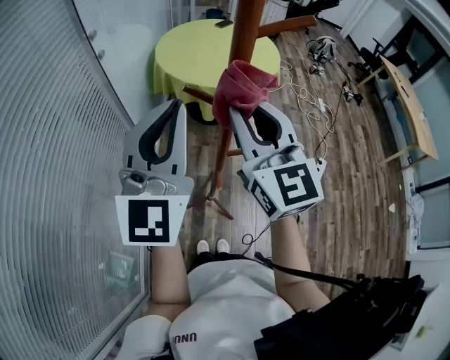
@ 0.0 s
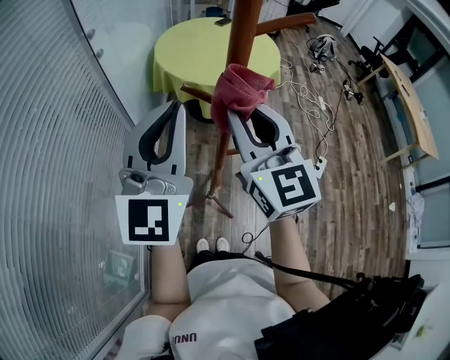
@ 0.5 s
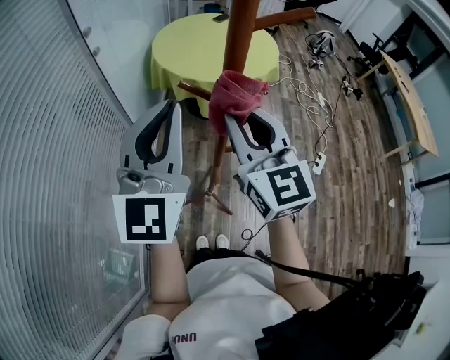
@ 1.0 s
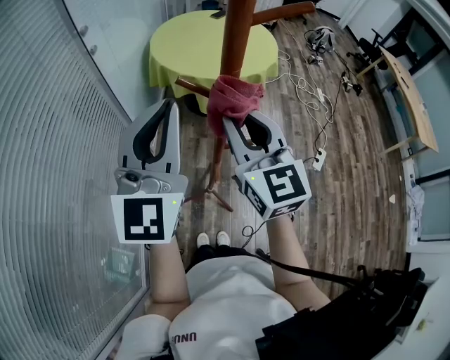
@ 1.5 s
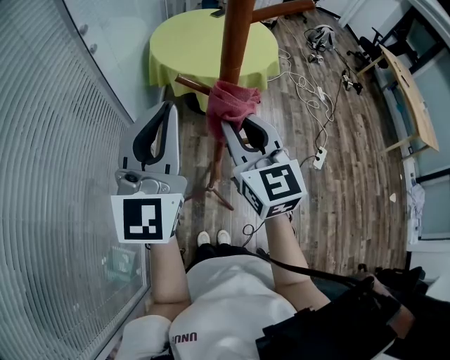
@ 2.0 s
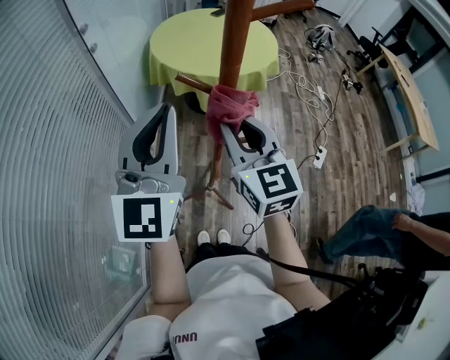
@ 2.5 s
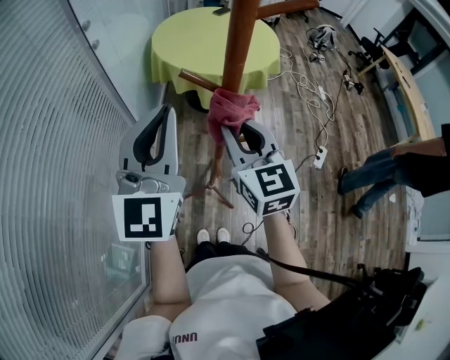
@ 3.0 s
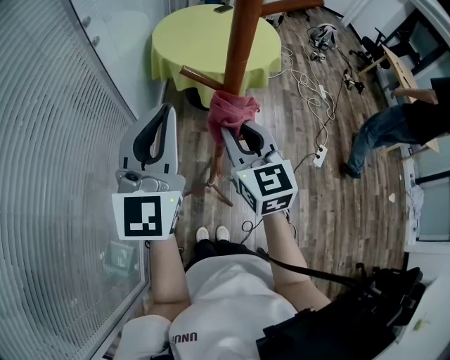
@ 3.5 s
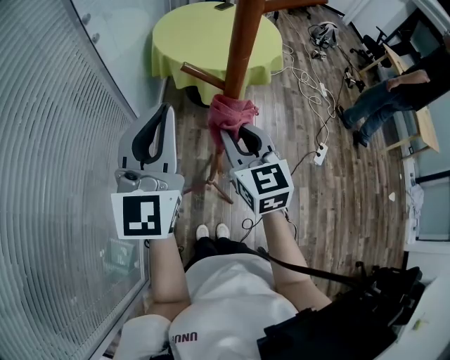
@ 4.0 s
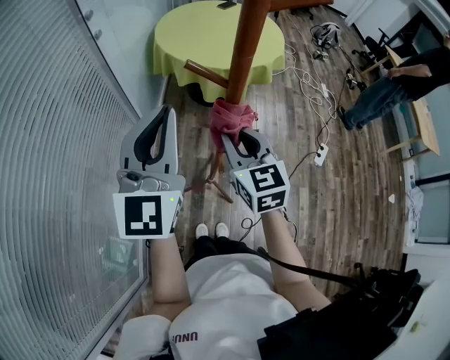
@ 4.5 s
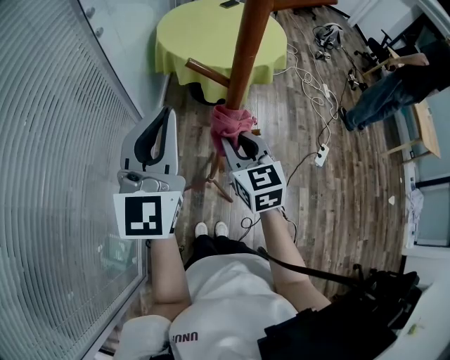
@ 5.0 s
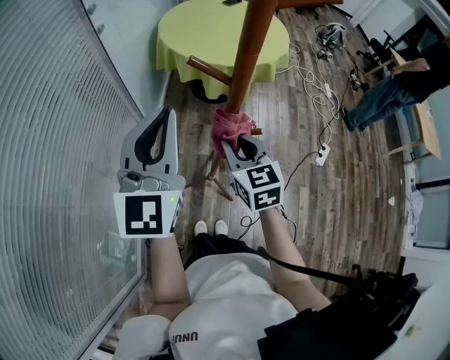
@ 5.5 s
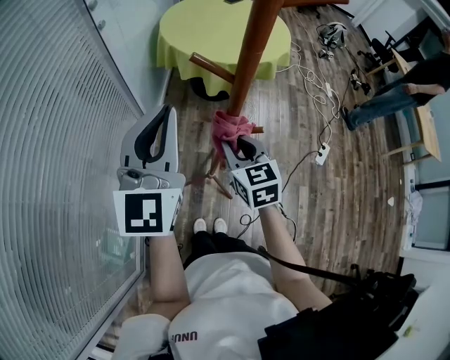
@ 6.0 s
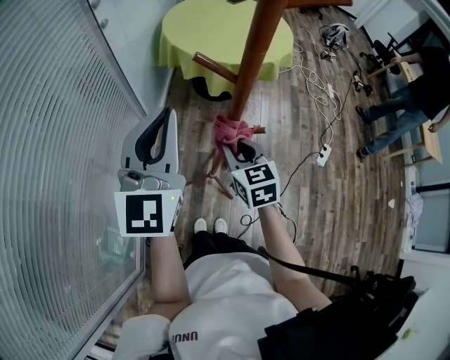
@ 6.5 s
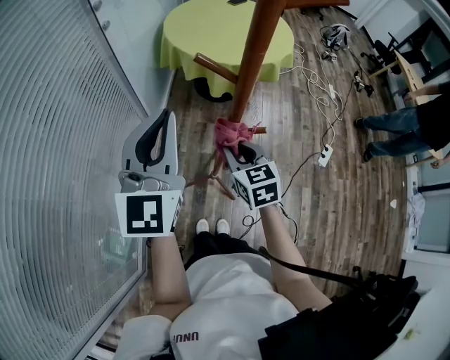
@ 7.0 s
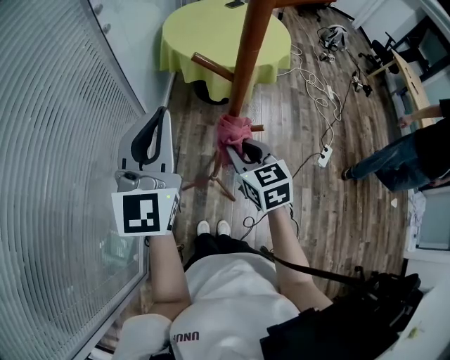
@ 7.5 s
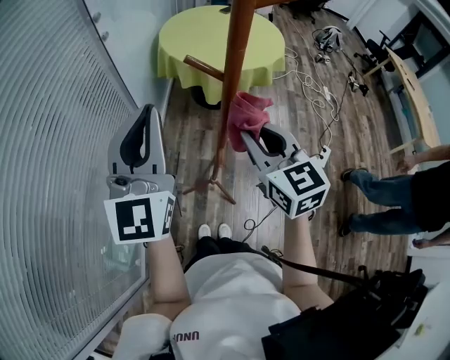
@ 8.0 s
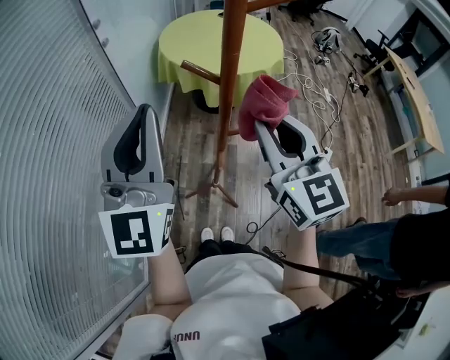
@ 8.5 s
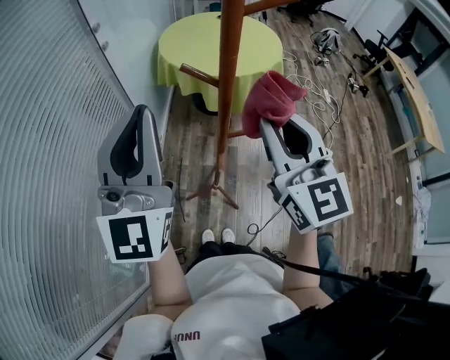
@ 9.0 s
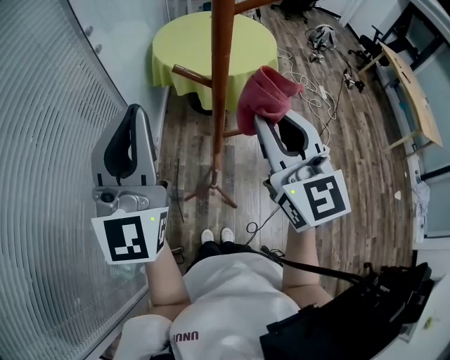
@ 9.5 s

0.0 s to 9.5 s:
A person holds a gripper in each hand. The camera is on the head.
0.0 to 2.0 s: The right gripper goes about 5 cm downward.
2.0 to 4.0 s: The right gripper is displaced downward by some 5 cm.
4.0 to 5.5 s: The right gripper goes approximately 5 cm downward.
5.5 to 7.5 s: The grippers stay close to where they were, moving slightly.
7.5 to 9.5 s: The left gripper heads upward, covering roughly 10 cm. Meanwhile the right gripper heads upward, covering some 20 cm, and tips its fingers upward by roughly 30 degrees.

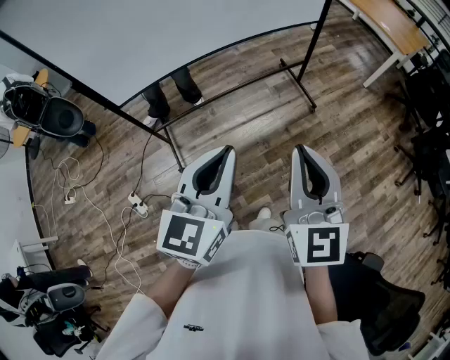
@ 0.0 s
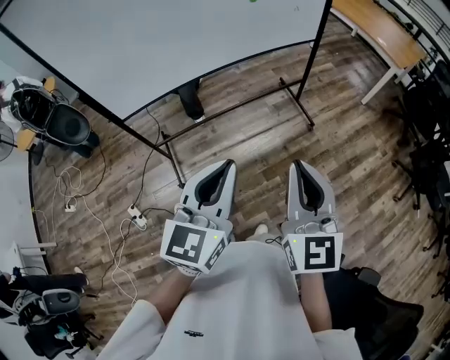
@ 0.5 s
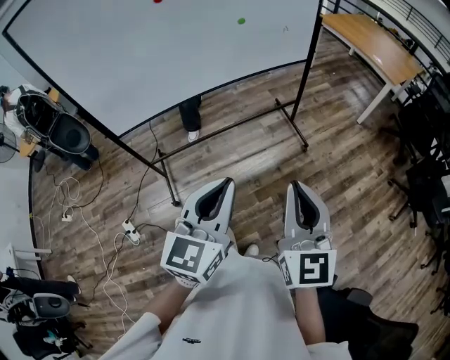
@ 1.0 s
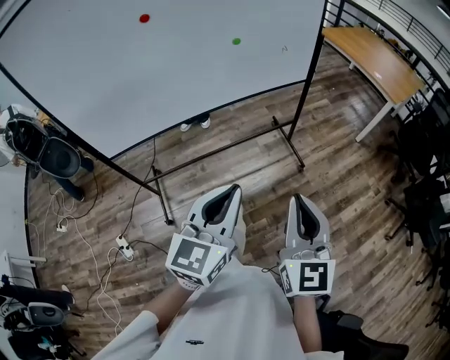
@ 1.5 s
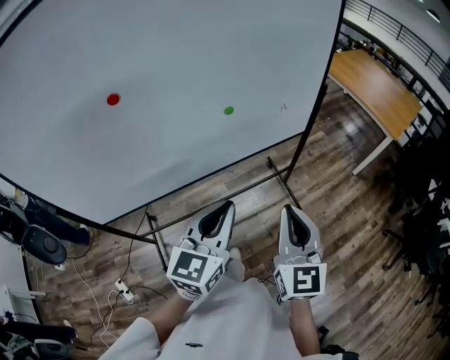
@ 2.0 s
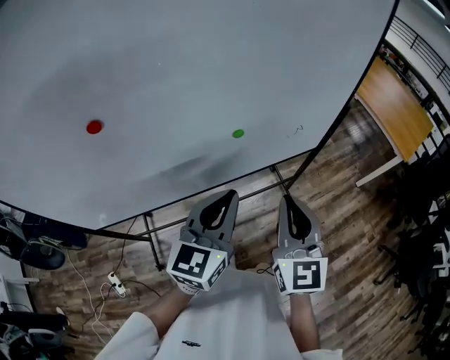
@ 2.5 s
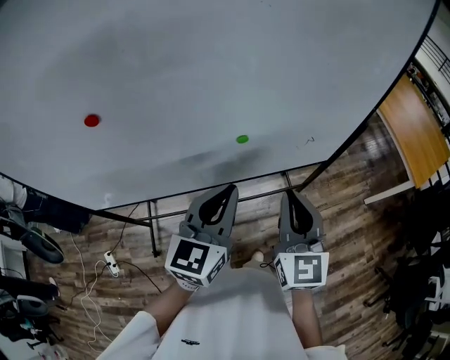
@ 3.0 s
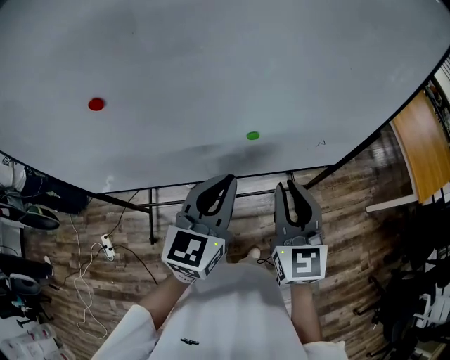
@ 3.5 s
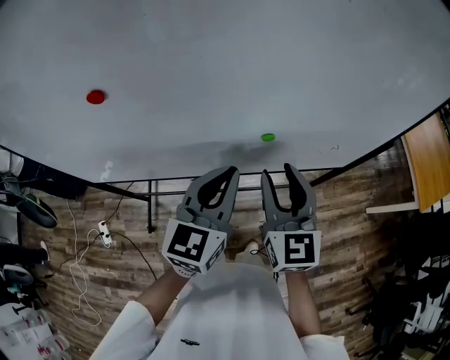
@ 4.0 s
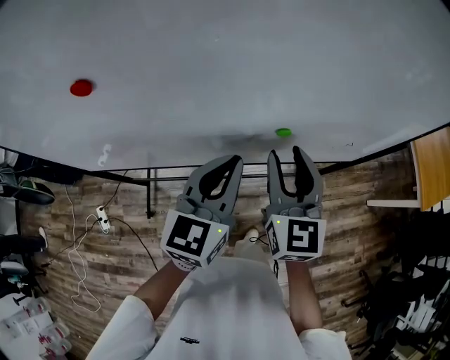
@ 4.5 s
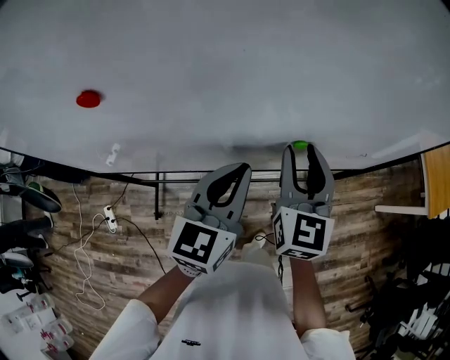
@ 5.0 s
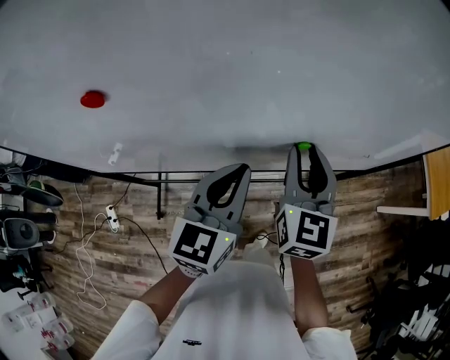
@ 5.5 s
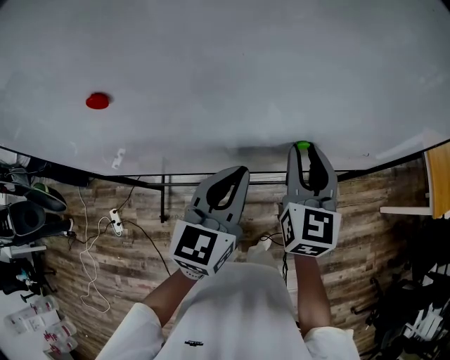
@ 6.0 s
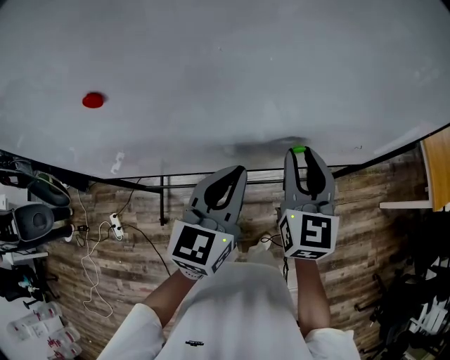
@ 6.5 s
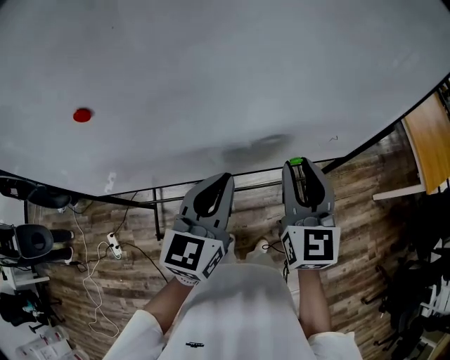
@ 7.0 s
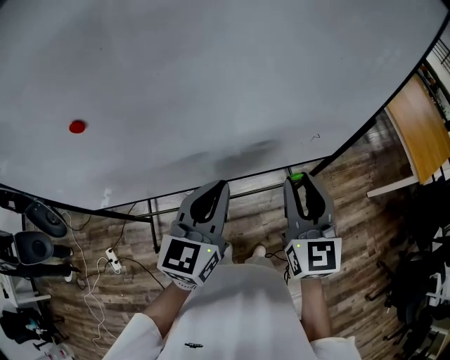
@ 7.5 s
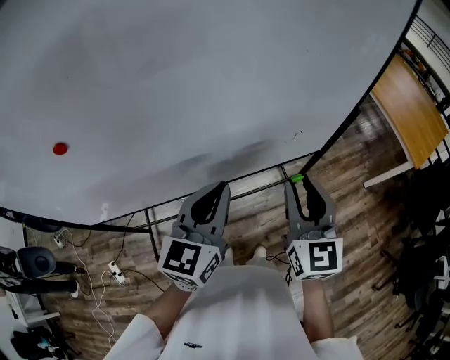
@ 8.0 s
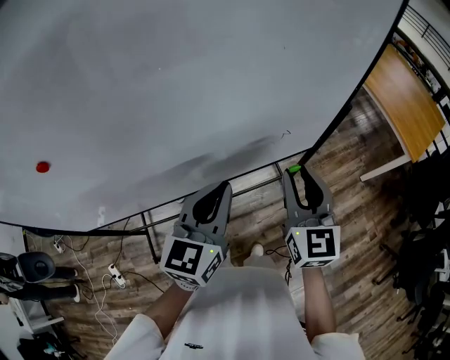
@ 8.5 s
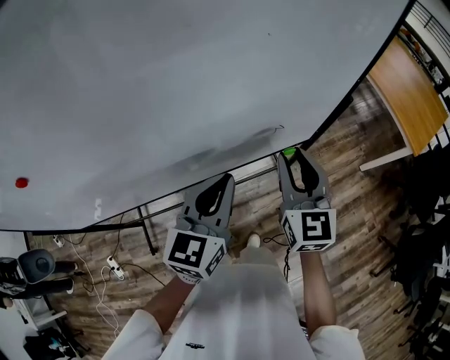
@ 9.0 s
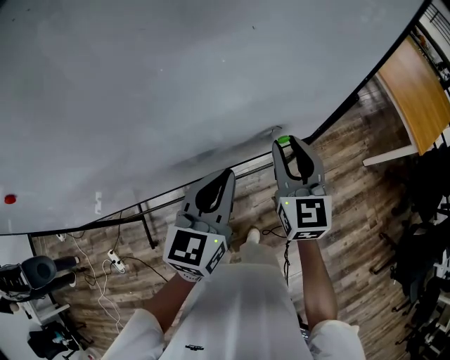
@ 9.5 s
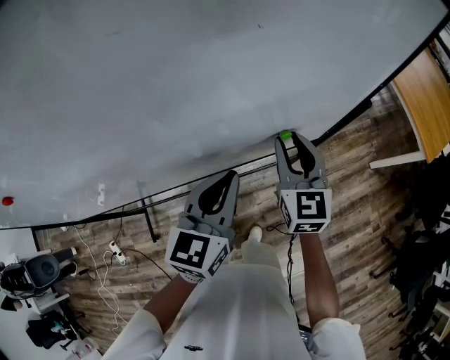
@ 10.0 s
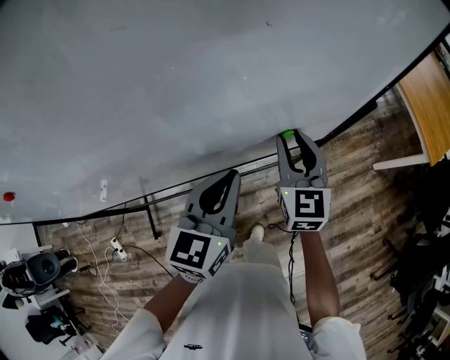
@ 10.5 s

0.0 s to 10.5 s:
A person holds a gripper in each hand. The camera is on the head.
0.0 to 2.0 s: The two grippers go some 35 cm forward.
2.0 to 4.0 s: Both grippers move forward, some 20 cm. The right gripper changes its angle by approximately 20 degrees, and opens up.
4.0 to 6.5 s: The right gripper is displaced forward by some 5 cm.
6.5 to 8.5 s: The grippers both shift to the right by approximately 15 cm.
8.5 to 10.5 s: The right gripper shifts about 15 cm forward and downward, while the left gripper heads forward and downward, covering about 10 cm.

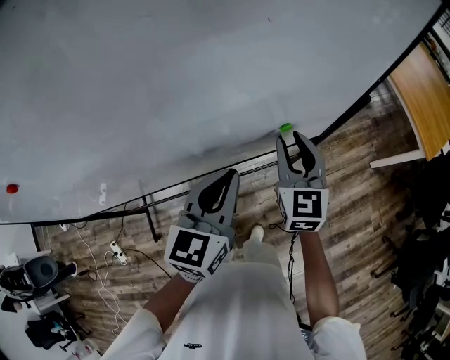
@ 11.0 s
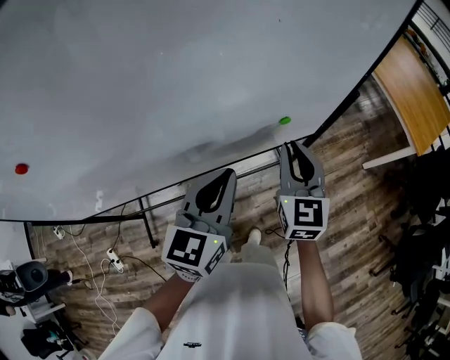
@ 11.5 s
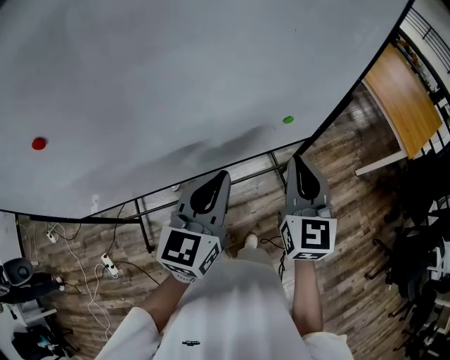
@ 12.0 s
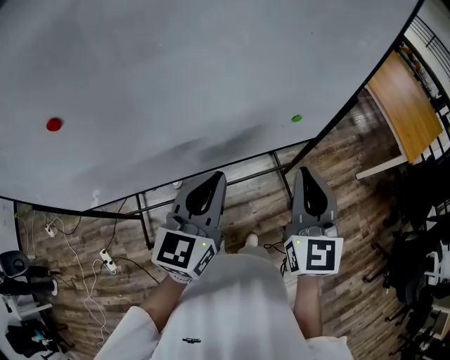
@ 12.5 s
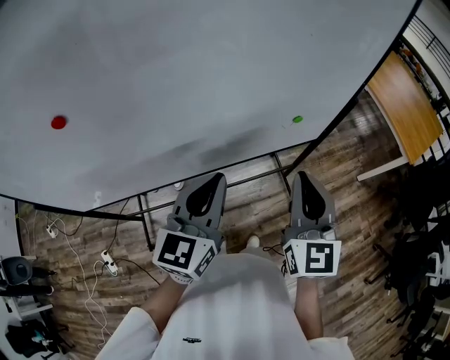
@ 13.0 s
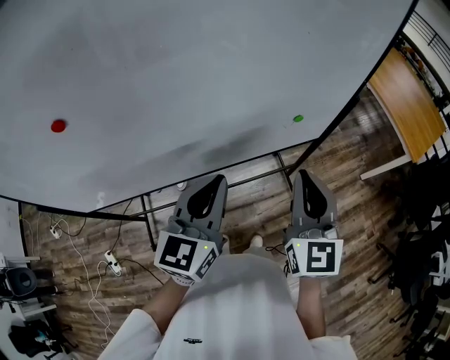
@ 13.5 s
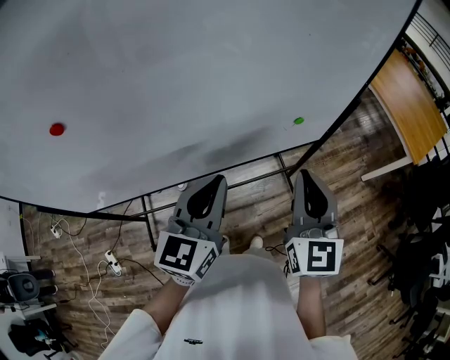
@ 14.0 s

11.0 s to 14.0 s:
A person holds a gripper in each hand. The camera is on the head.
11.0 to 12.5 s: The left gripper heads backward, to the left and upward, covering some 15 cm. Meanwhile the right gripper goes about 20 cm backward and upward, and closes.
12.5 to 14.0 s: Both grippers stay about where they are.

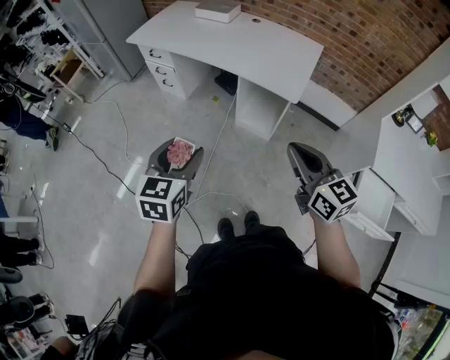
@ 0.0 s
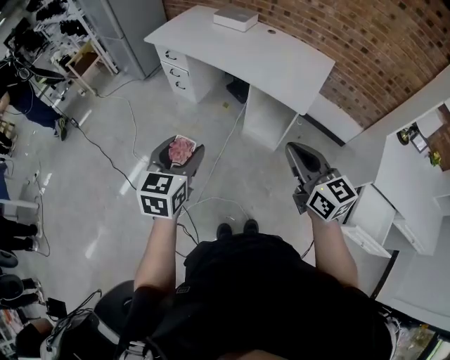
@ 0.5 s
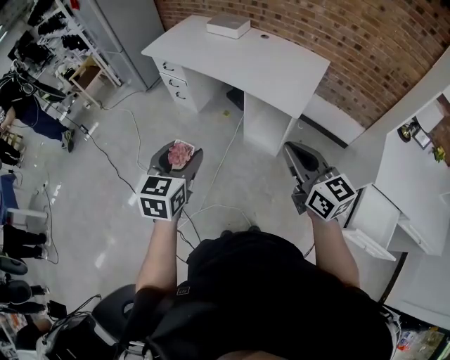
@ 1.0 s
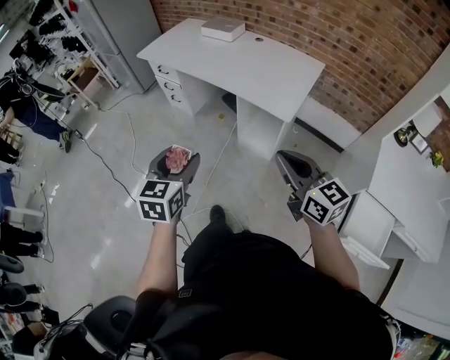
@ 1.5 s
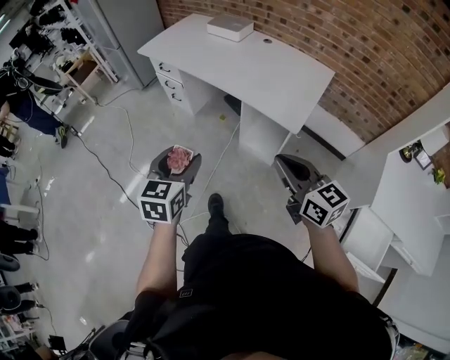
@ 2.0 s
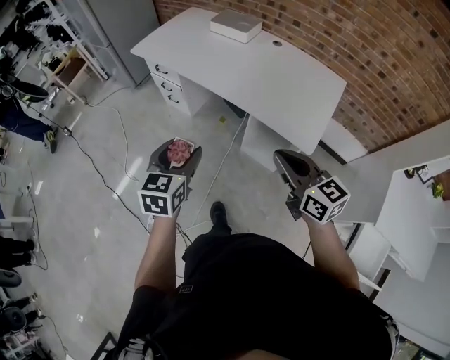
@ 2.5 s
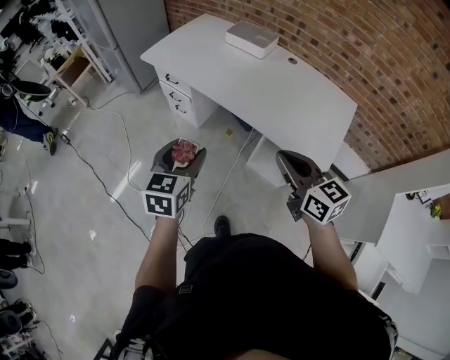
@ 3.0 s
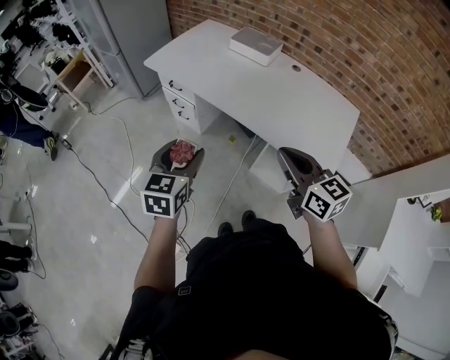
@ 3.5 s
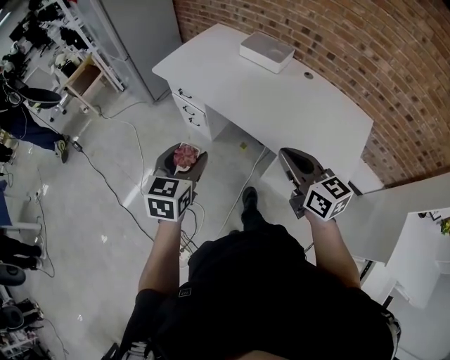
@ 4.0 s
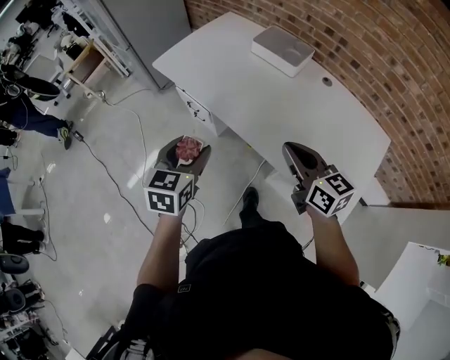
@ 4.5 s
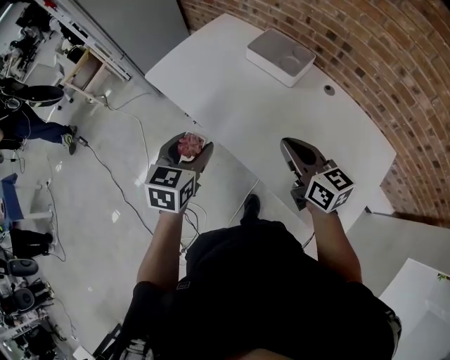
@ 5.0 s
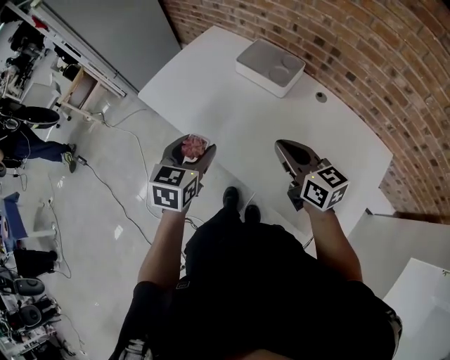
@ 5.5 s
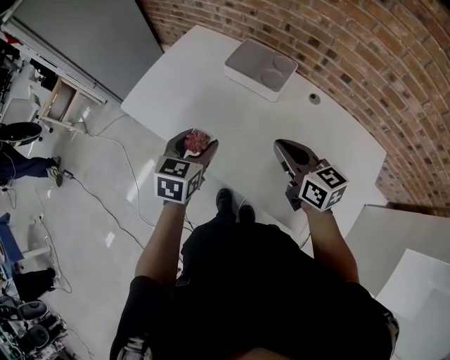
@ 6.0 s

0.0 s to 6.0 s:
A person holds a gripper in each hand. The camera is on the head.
0.0 to 2.0 s: The grippers both shift forward by roughly 5 cm.
2.0 to 4.0 s: The grippers both shift forward by some 35 cm.
4.0 to 6.0 s: The left gripper heads forward and to the right, covering about 35 cm, while the right gripper travels forward by some 30 cm.
